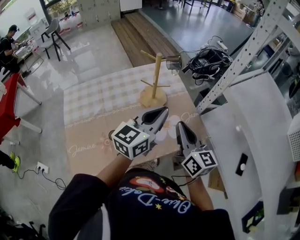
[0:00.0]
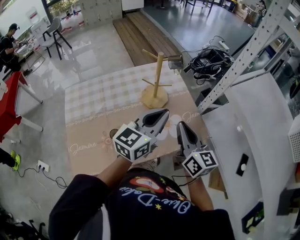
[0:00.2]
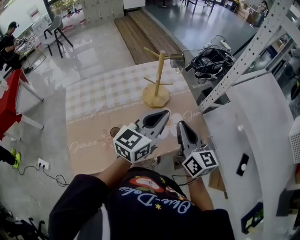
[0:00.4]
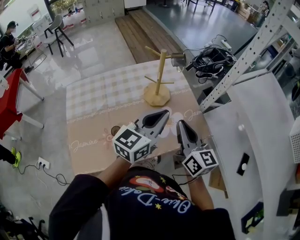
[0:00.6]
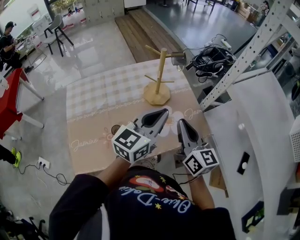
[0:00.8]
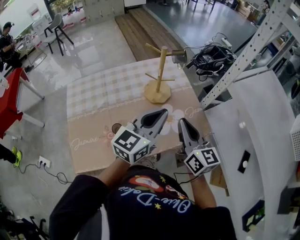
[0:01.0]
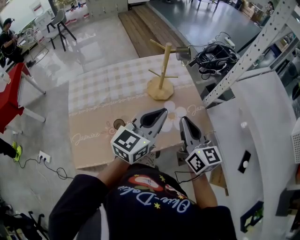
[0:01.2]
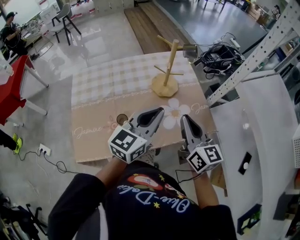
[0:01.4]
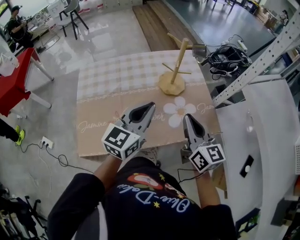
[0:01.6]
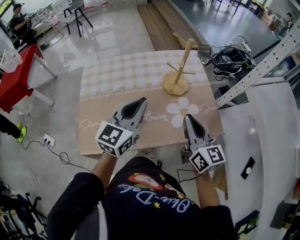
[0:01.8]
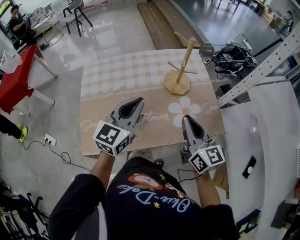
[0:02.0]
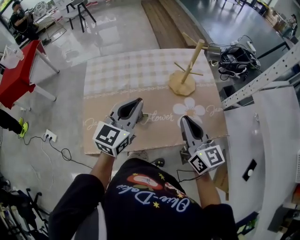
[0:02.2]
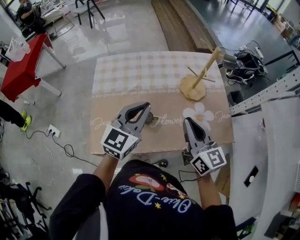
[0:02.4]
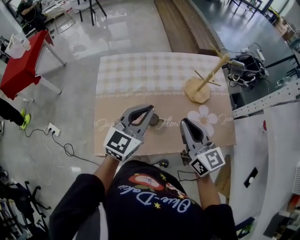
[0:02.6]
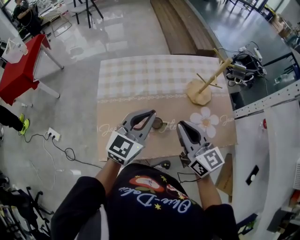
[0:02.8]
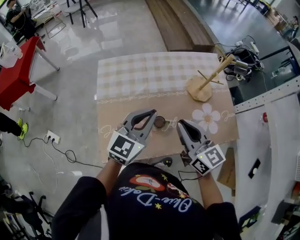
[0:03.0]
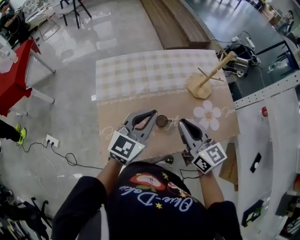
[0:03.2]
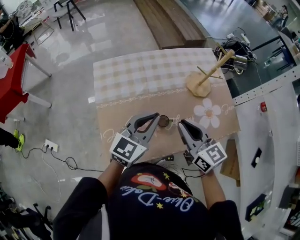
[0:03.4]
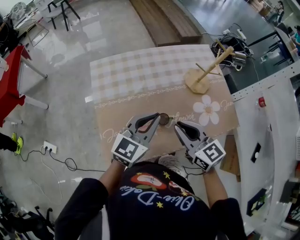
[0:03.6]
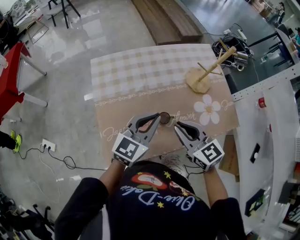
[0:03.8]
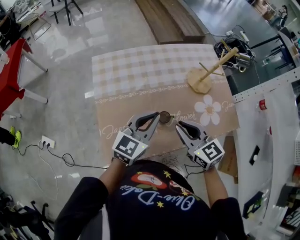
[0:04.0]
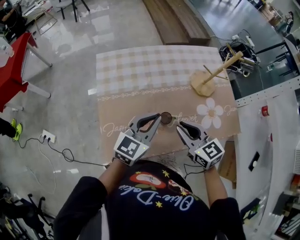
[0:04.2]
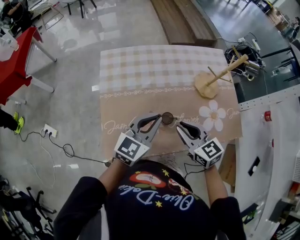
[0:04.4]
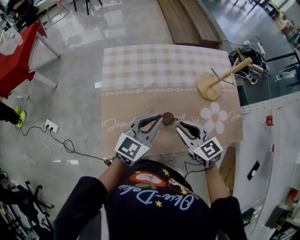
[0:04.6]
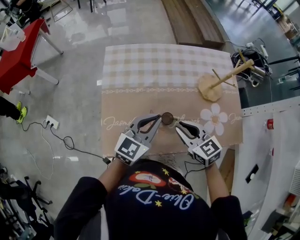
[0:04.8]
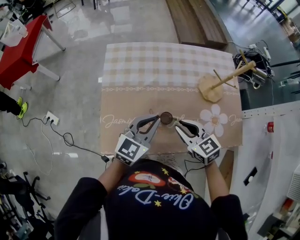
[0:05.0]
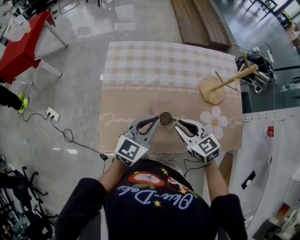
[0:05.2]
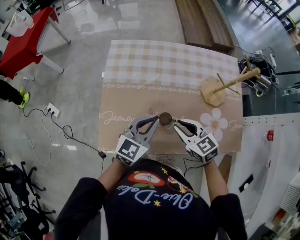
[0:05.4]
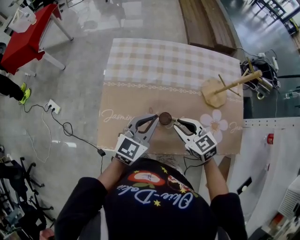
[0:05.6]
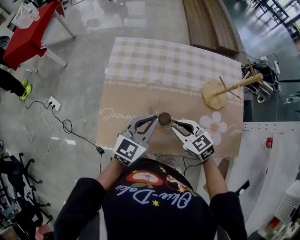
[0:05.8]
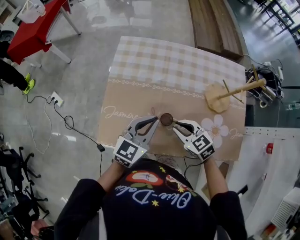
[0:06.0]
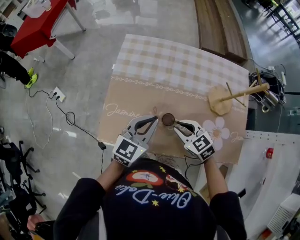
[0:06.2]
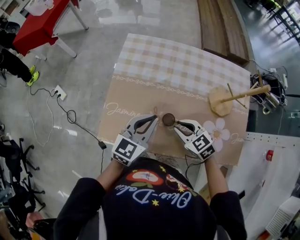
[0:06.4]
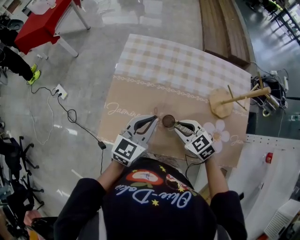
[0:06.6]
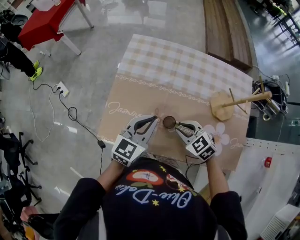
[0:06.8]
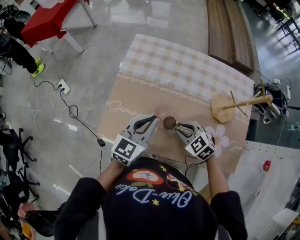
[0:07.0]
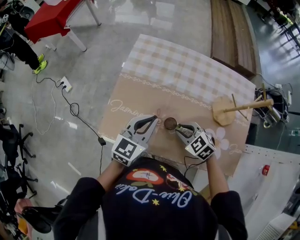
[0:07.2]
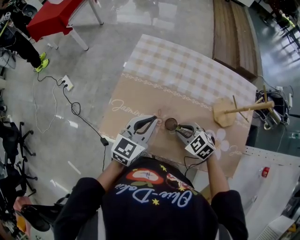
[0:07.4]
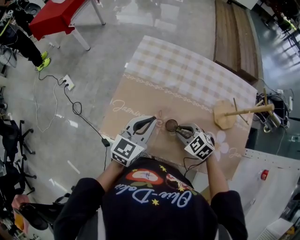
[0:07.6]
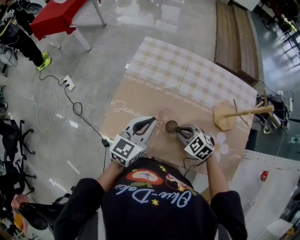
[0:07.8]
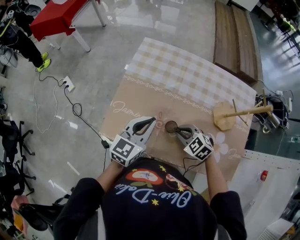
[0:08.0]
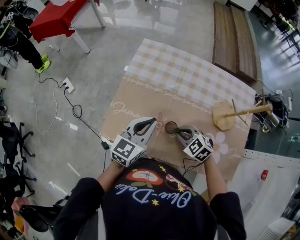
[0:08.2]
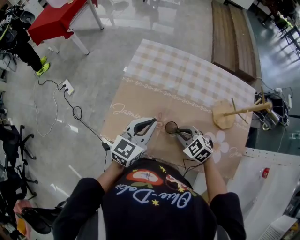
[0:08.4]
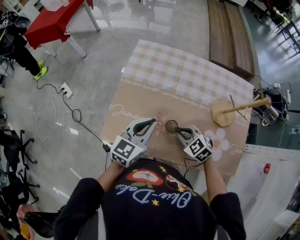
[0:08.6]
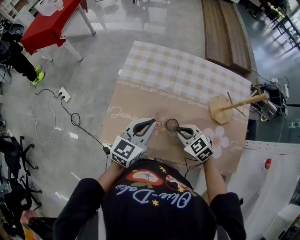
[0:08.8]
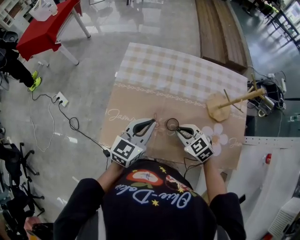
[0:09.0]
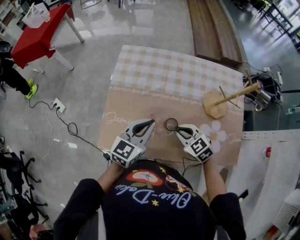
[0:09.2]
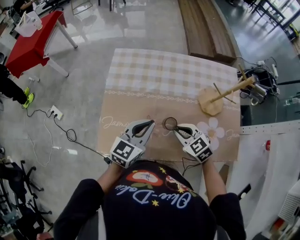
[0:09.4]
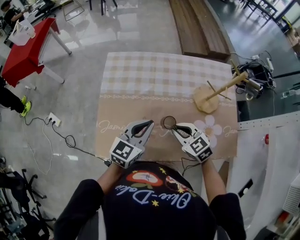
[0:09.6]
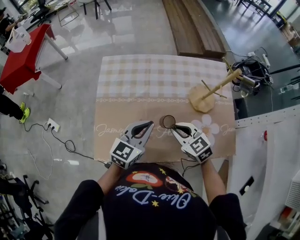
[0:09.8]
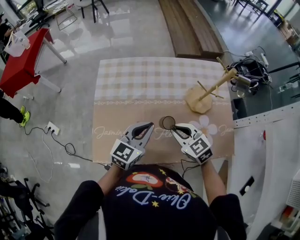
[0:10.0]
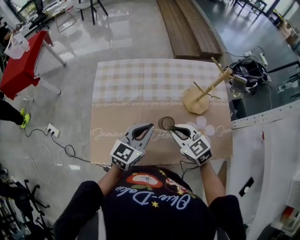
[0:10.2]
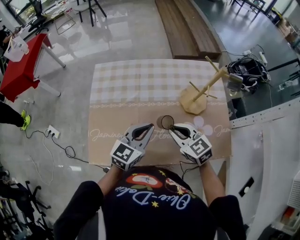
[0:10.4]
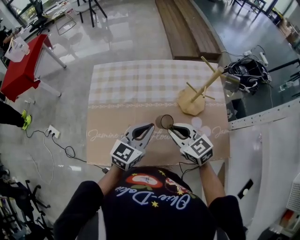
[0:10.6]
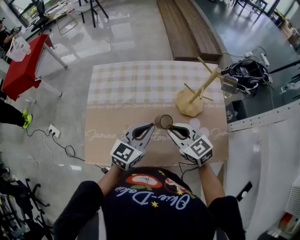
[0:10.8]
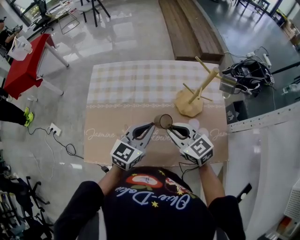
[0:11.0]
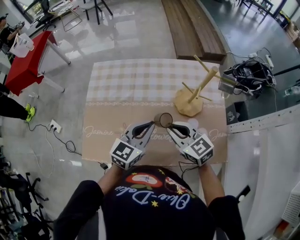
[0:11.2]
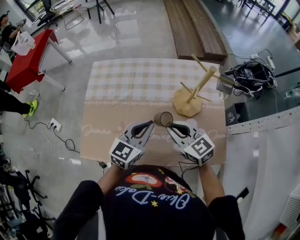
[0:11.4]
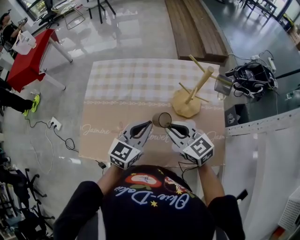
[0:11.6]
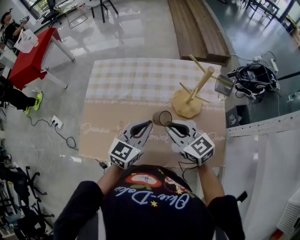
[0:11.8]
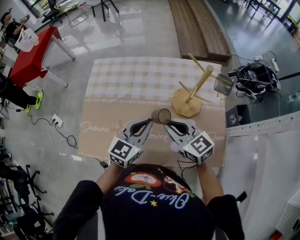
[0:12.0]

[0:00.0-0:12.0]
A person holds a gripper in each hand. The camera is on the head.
0:00.0 to 0:01.6: The left gripper goes roughly 10 cm to the left and backward.
0:01.6 to 0:03.0: The two grippers go approximately 15 cm to the left.
0:03.0 to 0:04.4: The right gripper heads downward, covering about 10 cm, and turns by approximately 20 degrees. The left gripper travels downward by roughly 5 cm.
0:04.4 to 0:06.0: The right gripper heads downward, covering about 10 cm, and changes its angle by roughly 30 degrees.
0:06.0 to 0:07.6: The right gripper rotates approximately 30 degrees.
0:07.6 to 0:09.0: The grippers stay close to where they were, moving slightly.
0:09.0 to 0:10.4: The left gripper heads to the right, covering some 10 cm; the right gripper moves upward and to the right, about 10 cm, and turns by about 20 degrees.
0:10.4 to 0:12.0: The right gripper ends up about 5 cm from where it was. Meanwhile the left gripper moves to the right, some 5 cm.

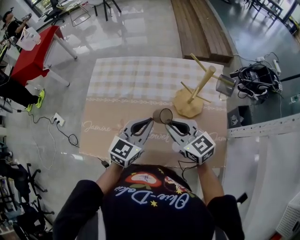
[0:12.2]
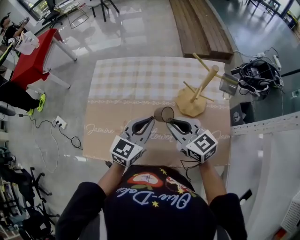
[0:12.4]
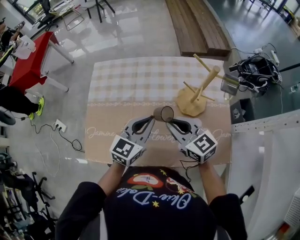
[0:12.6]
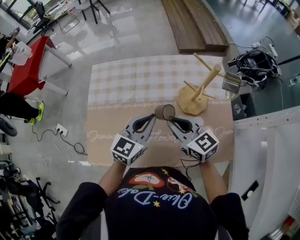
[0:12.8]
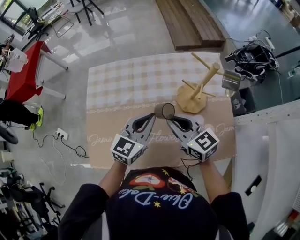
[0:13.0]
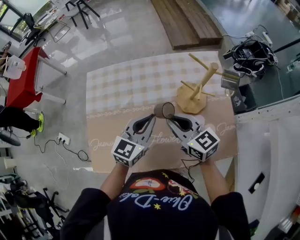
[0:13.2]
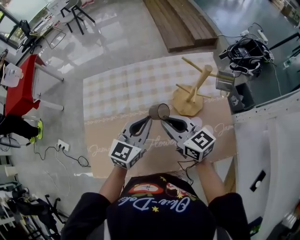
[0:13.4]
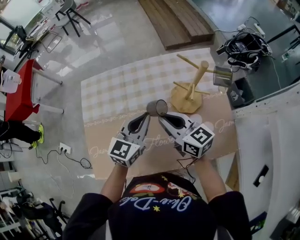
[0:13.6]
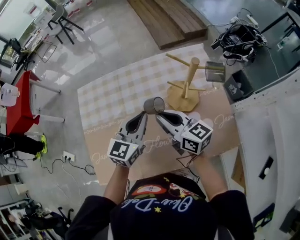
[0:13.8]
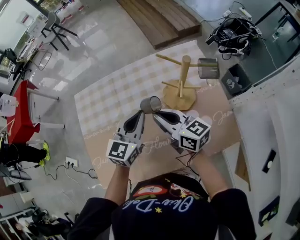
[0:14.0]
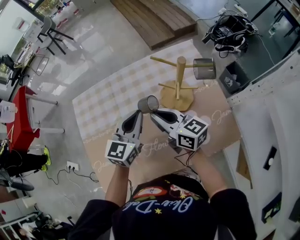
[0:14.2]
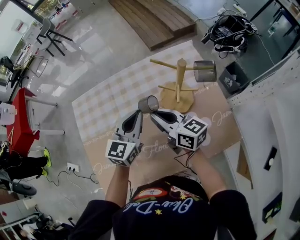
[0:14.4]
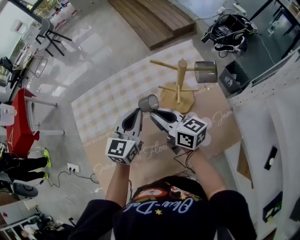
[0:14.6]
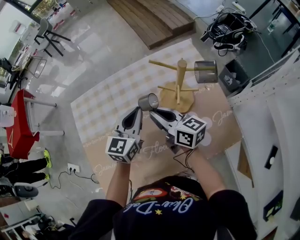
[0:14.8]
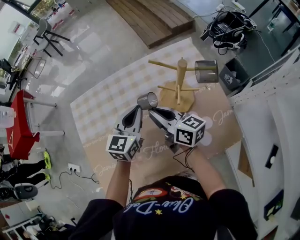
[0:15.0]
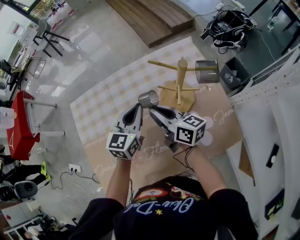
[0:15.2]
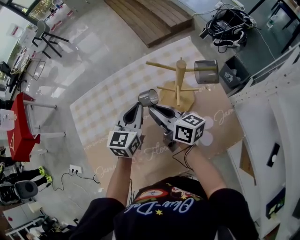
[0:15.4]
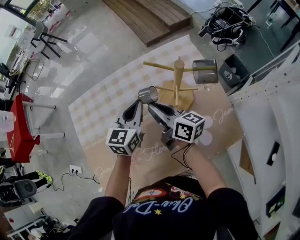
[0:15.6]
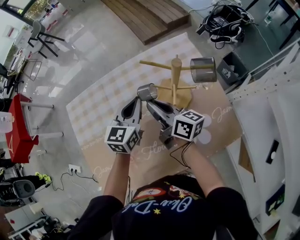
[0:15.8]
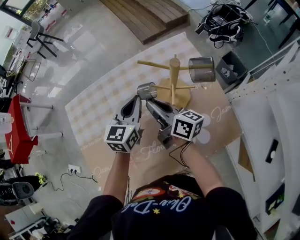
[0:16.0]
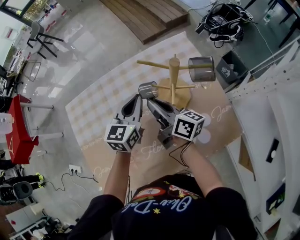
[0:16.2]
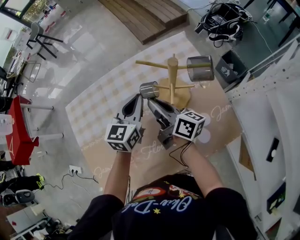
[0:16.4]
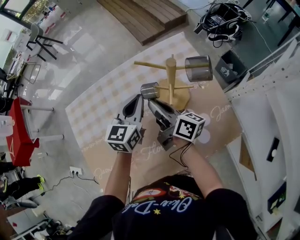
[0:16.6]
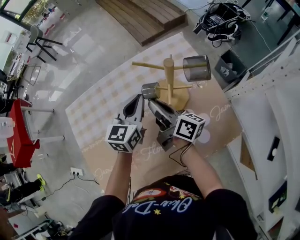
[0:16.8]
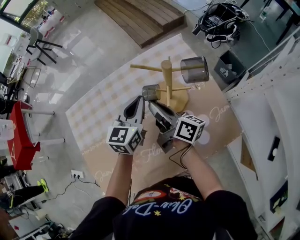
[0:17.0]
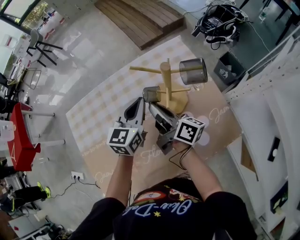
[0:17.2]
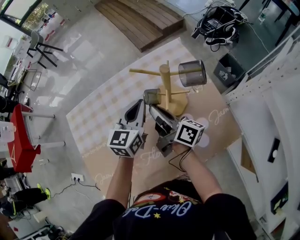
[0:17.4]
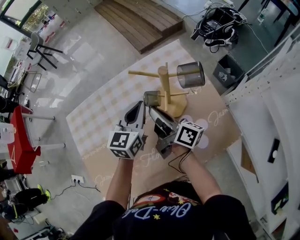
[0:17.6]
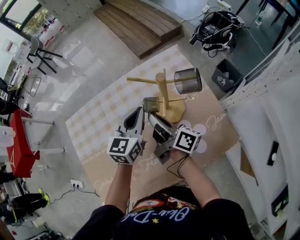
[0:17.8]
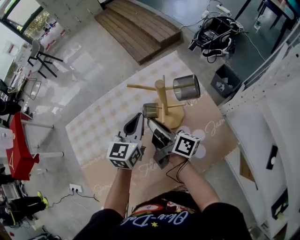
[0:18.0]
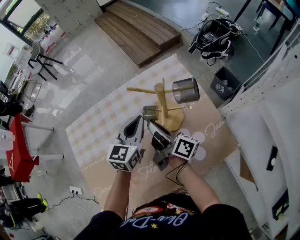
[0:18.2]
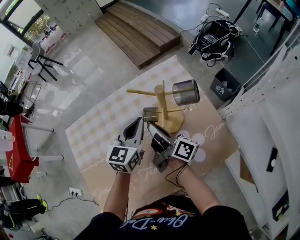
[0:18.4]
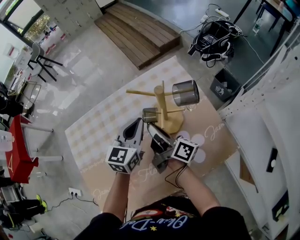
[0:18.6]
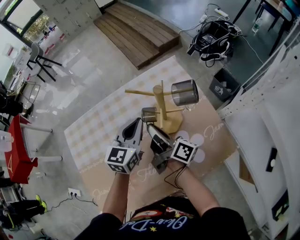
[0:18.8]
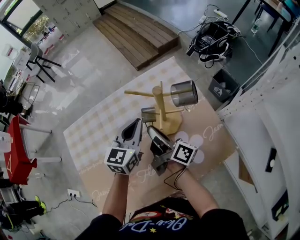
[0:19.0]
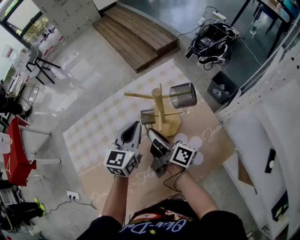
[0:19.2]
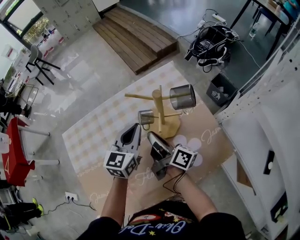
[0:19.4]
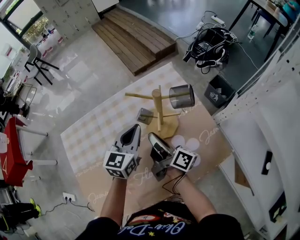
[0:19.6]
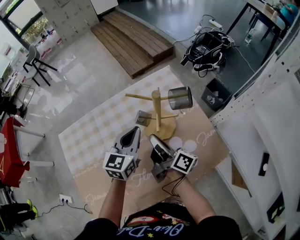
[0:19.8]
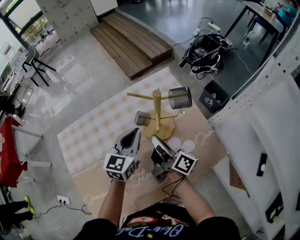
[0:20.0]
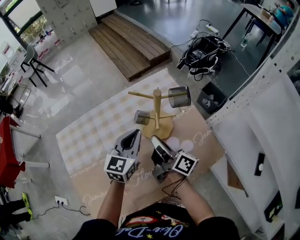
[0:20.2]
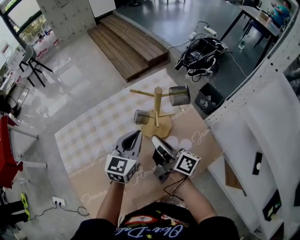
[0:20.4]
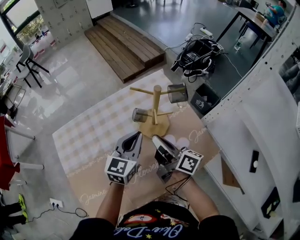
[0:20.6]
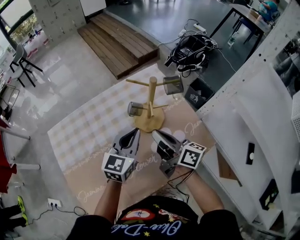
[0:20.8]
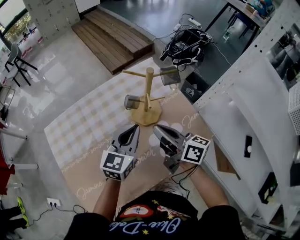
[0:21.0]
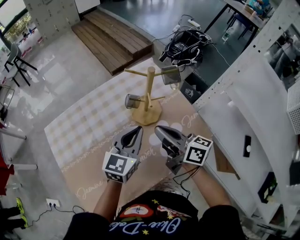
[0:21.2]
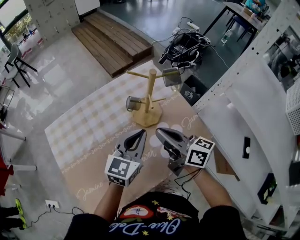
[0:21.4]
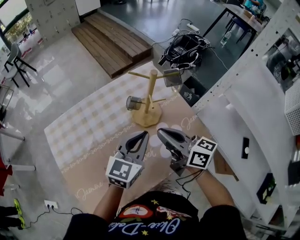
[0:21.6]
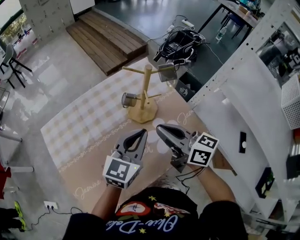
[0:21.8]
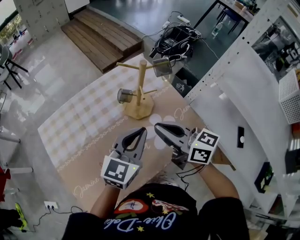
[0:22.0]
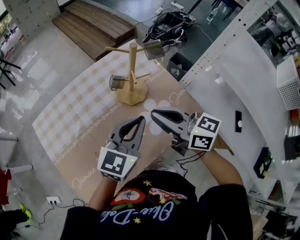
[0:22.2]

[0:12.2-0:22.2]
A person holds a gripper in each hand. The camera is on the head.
0:12.2 to 0:13.6: The two grippers go about 5 cm forward. The right gripper changes its angle by roughly 20 degrees.
0:13.6 to 0:15.0: Both grippers travel together forward, about 5 cm. The right gripper swivels about 20 degrees.
0:15.0 to 0:16.4: The grippers make only small movements.
0:16.4 to 0:18.0: The grippers make only small movements.
0:18.0 to 0:19.4: The grippers stay close to where they were, moving slightly.
0:19.4 to 0:20.8: The right gripper travels upward and backward by roughly 10 cm. The left gripper travels backward by approximately 5 cm.
0:20.8 to 0:22.2: The left gripper moves backward and upward, roughly 10 cm. The right gripper is displaced upward and backward by approximately 10 cm, and changes its angle by some 30 degrees.

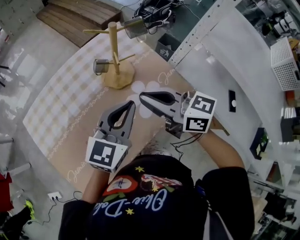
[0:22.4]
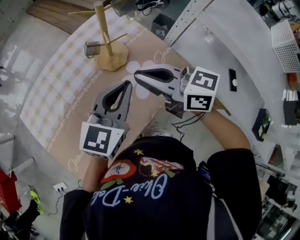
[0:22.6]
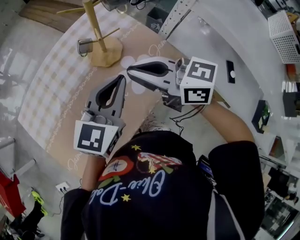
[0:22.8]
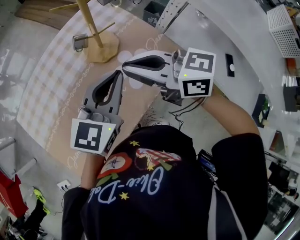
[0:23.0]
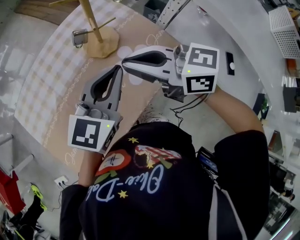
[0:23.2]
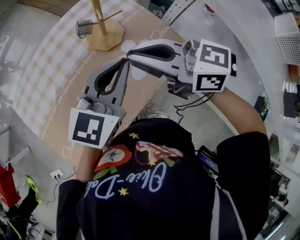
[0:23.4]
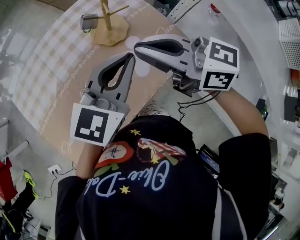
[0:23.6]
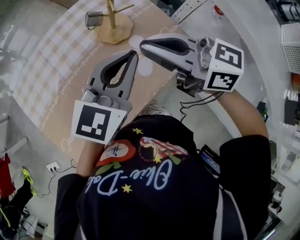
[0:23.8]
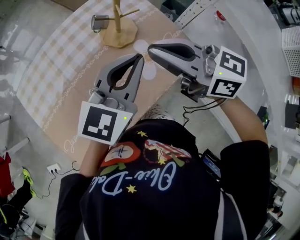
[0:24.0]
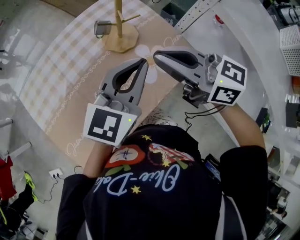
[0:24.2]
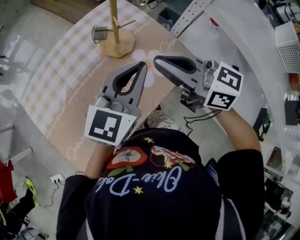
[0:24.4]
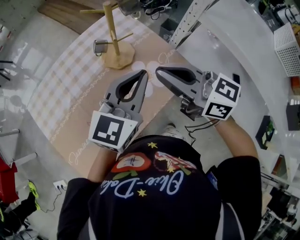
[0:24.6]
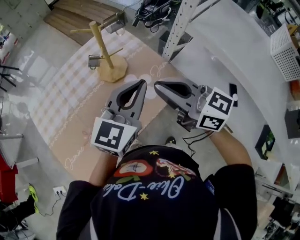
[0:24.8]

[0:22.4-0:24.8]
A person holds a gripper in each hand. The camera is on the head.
0:22.4 to 0:23.6: The grippers move only a little.
0:23.6 to 0:24.8: The right gripper travels to the right and backward by some 10 cm; the left gripper heads to the right, covering about 5 cm.
